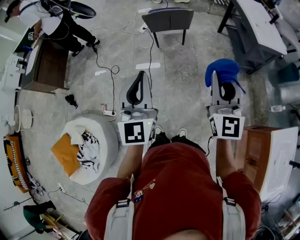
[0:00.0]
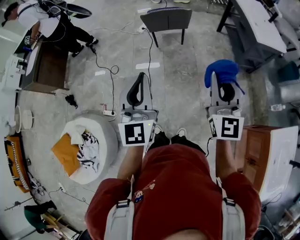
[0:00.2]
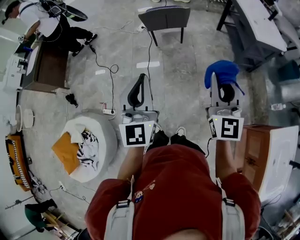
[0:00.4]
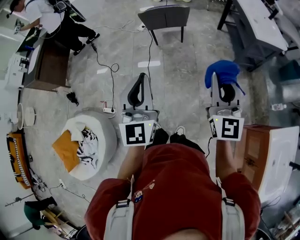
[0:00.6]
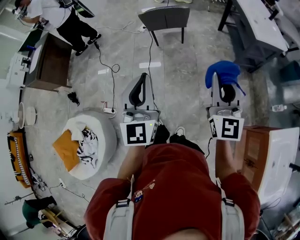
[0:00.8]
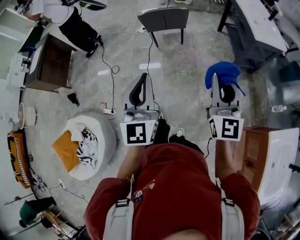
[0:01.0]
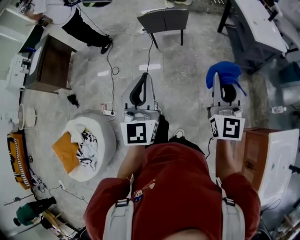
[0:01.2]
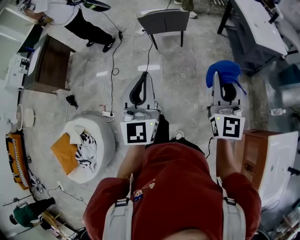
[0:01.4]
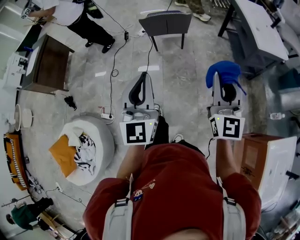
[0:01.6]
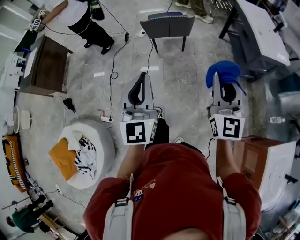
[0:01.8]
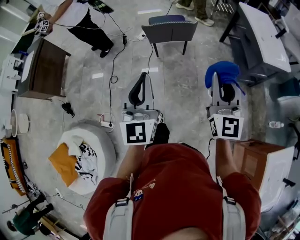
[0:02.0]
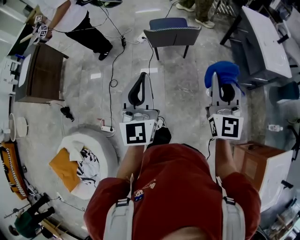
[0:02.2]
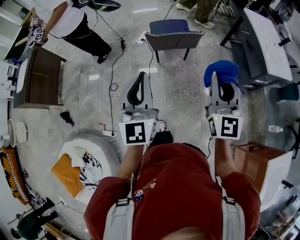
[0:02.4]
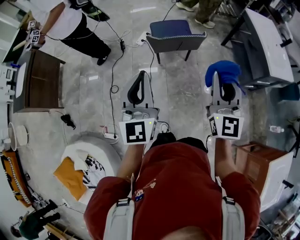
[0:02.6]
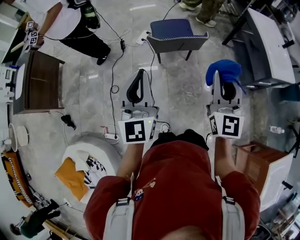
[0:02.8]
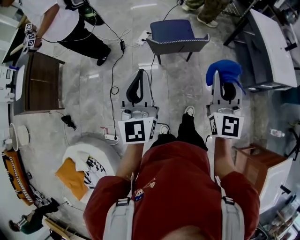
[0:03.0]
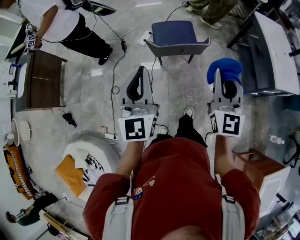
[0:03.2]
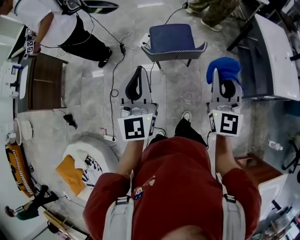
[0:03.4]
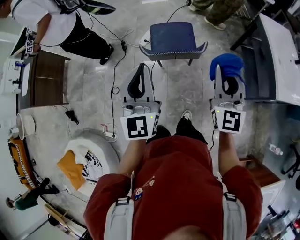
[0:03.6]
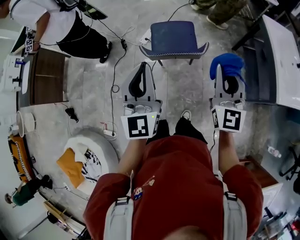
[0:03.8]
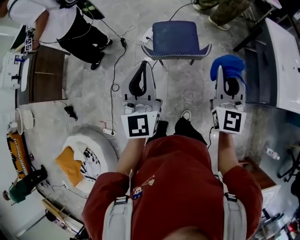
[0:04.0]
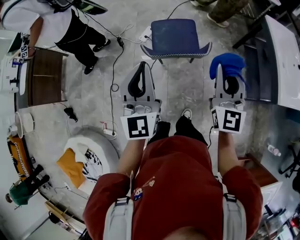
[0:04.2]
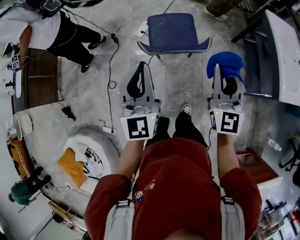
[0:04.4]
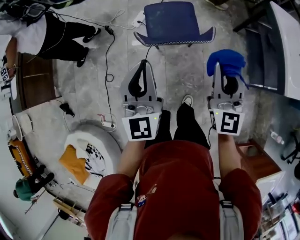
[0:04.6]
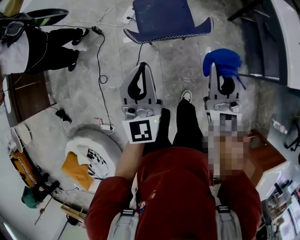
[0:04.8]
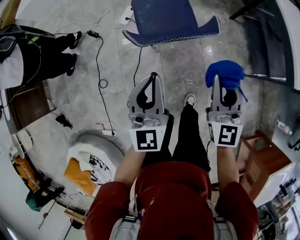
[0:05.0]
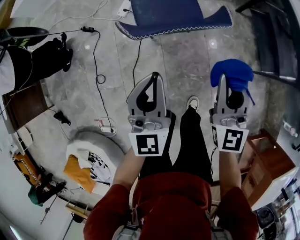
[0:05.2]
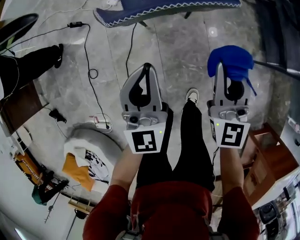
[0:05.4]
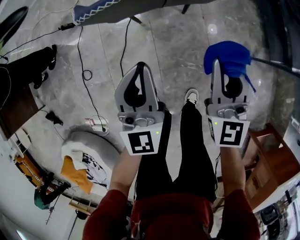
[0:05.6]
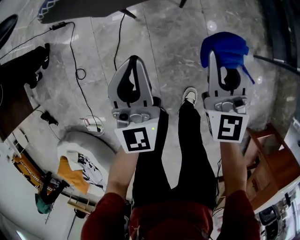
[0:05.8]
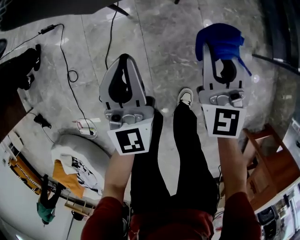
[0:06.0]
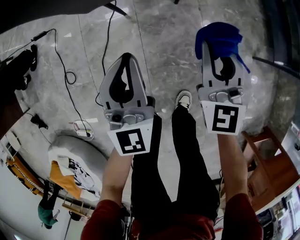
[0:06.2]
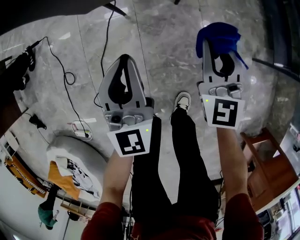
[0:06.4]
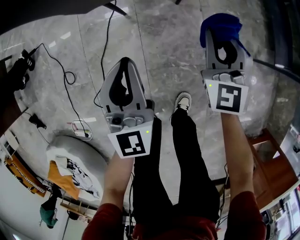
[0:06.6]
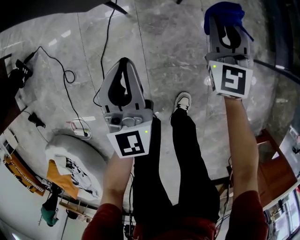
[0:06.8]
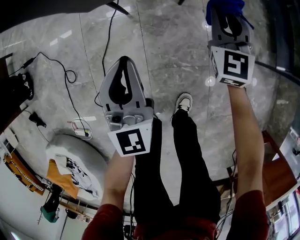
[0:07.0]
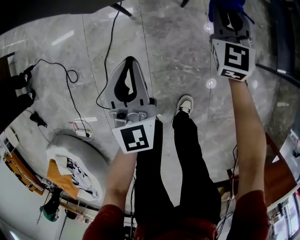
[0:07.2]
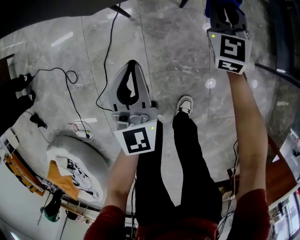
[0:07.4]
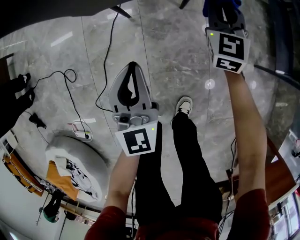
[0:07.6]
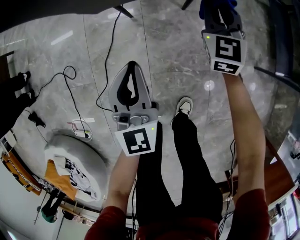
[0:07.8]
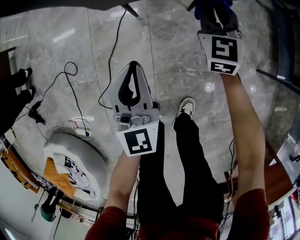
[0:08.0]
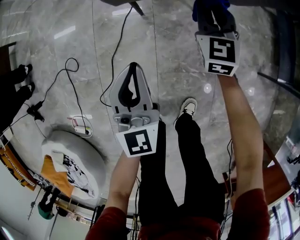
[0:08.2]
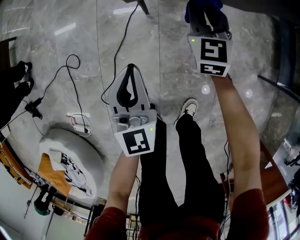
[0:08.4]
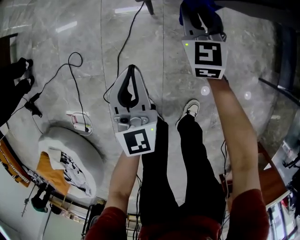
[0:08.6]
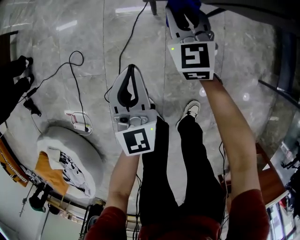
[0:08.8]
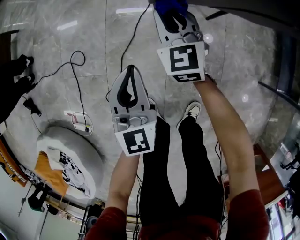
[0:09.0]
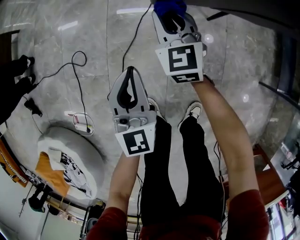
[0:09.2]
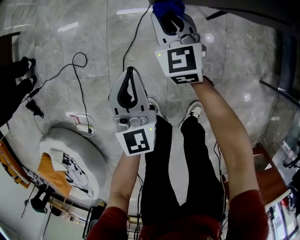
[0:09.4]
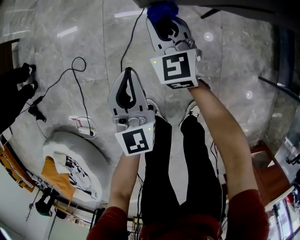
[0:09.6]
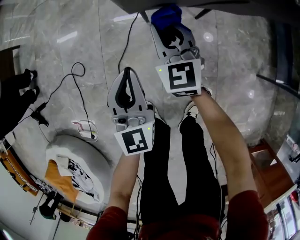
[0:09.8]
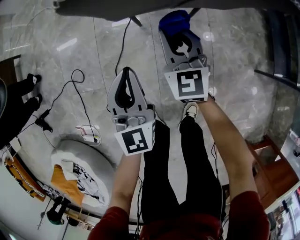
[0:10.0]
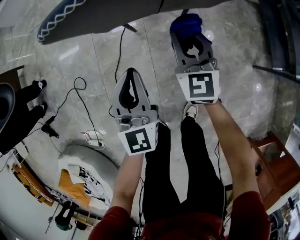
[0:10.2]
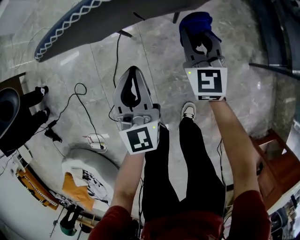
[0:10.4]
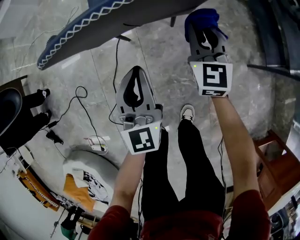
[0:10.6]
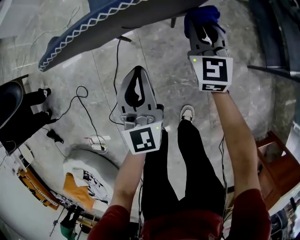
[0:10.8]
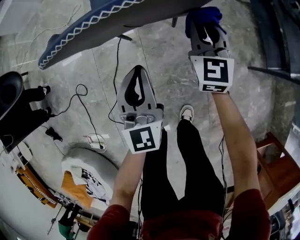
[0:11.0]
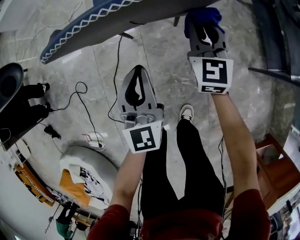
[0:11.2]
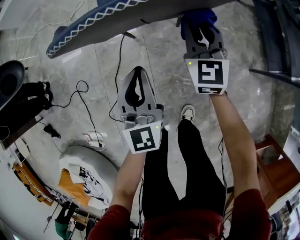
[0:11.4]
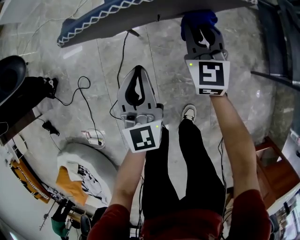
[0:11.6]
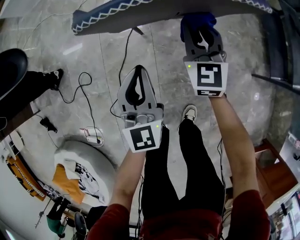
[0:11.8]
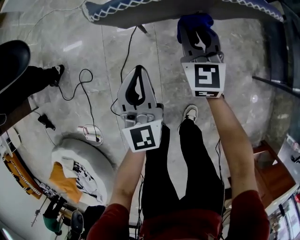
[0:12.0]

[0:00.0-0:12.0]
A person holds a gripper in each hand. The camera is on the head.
0:00.0 to 0:01.6: The grippers both shift to the right by some 5 cm.
0:01.6 to 0:03.0: Both grippers travel together forward and to the left, approximately 35 cm.
0:03.0 to 0:04.4: The two grippers go roughly 20 cm forward and to the right.
0:04.4 to 0:06.0: Both grippers move downward, some 50 cm.
0:06.0 to 0:07.6: The right gripper shifts approximately 20 cm forward and downward. Meanwhile the left gripper travels downward by roughly 5 cm.
0:07.6 to 0:09.0: The right gripper is displaced to the left by some 30 cm, and rotates approximately 20 degrees. Meanwhile the left gripper is displaced to the left by some 15 cm.
0:09.0 to 0:10.4: The grippers both shift to the right by some 25 cm. The right gripper swivels roughly 20 degrees.
0:10.4 to 0:12.0: The grippers both shift to the left by roughly 10 cm.

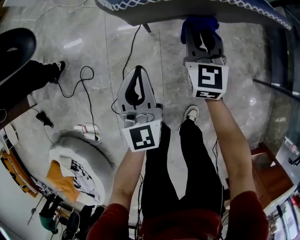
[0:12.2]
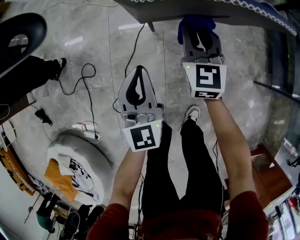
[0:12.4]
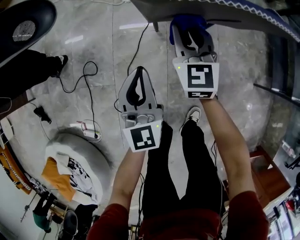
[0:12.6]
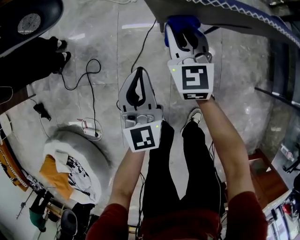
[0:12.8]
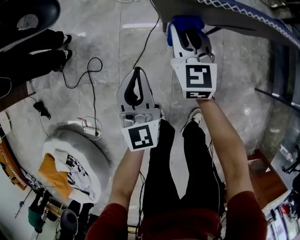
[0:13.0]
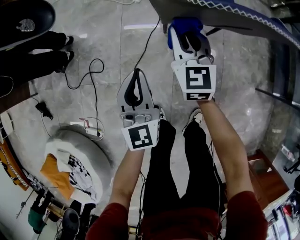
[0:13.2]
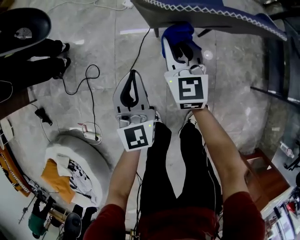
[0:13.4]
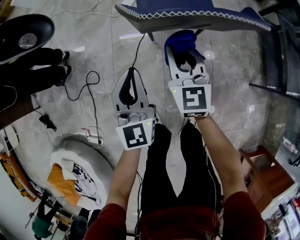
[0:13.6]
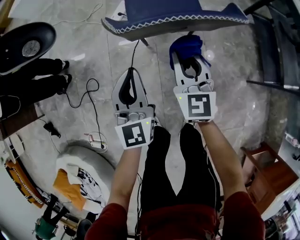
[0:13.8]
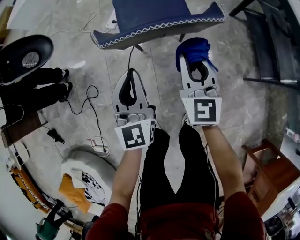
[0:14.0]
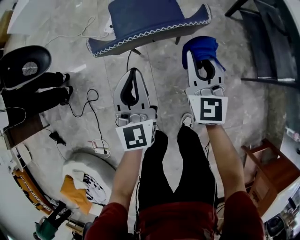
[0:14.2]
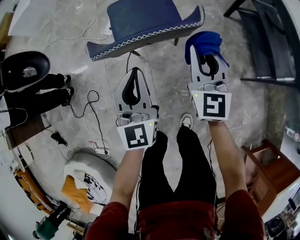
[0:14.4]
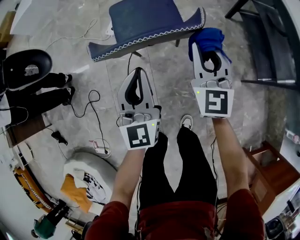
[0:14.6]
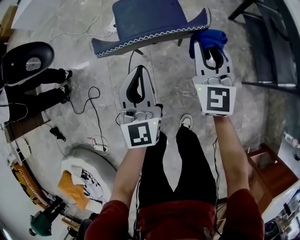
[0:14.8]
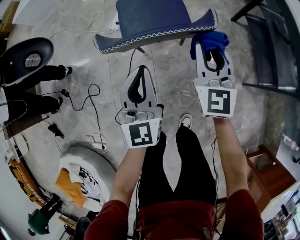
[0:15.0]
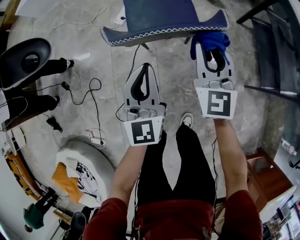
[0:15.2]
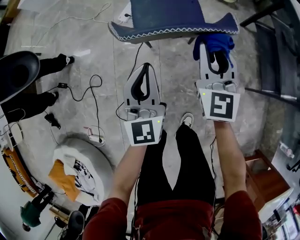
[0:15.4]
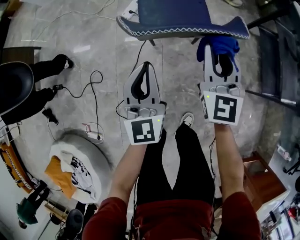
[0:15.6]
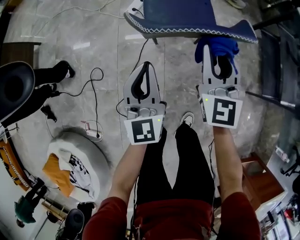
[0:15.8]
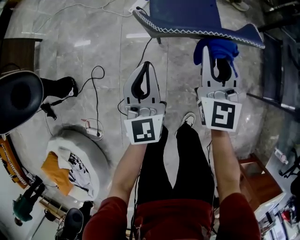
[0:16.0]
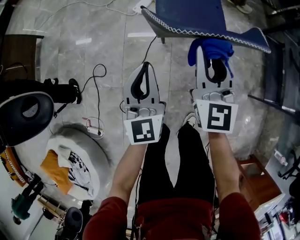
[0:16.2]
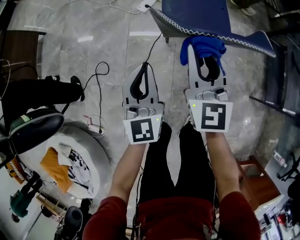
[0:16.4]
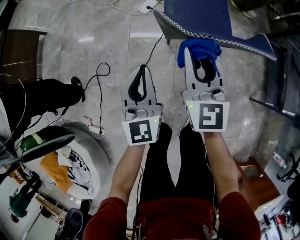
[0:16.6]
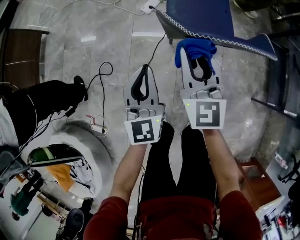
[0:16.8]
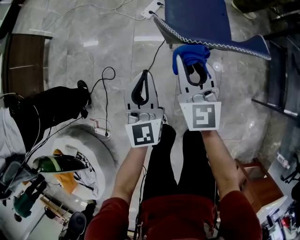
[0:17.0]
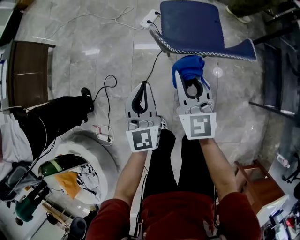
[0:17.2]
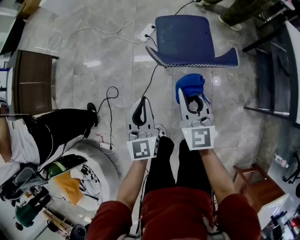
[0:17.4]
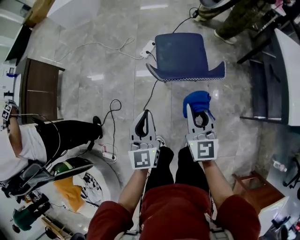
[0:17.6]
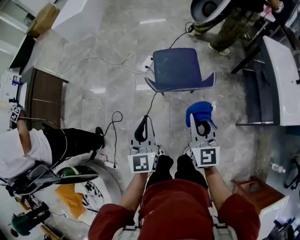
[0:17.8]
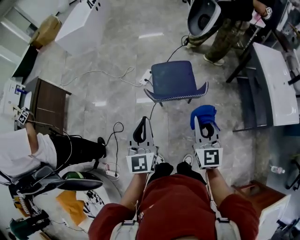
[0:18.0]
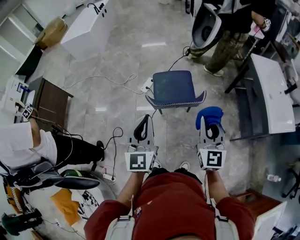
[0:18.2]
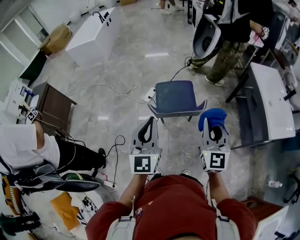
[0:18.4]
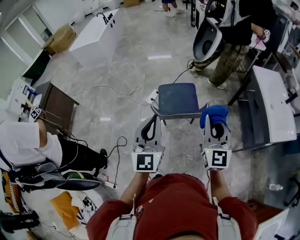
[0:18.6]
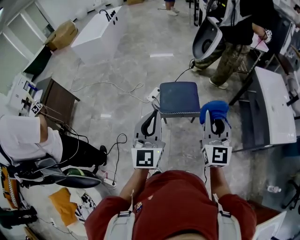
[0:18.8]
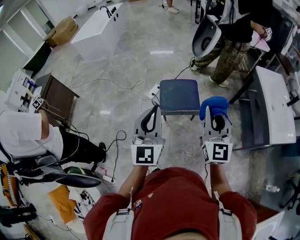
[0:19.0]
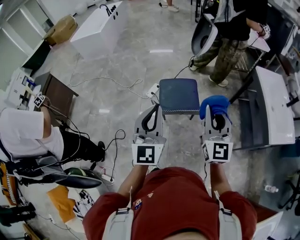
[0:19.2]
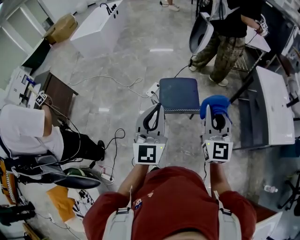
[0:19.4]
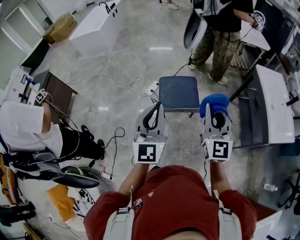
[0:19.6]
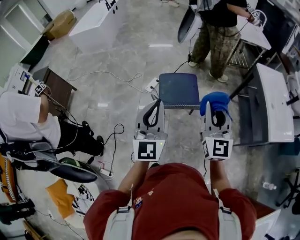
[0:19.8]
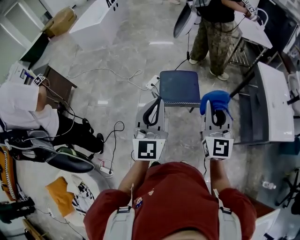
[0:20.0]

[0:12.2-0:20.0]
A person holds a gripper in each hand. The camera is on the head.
0:12.2 to 0:13.8: The left gripper moves upward, some 5 cm, and goes to the left and returns, roughly 10 cm each way. Meanwhile the right gripper moves upward and backward, approximately 10 cm, and travels to the left and back again, approximately 15 cm each way.
0:13.8 to 0:15.4: The right gripper travels upward and to the right by approximately 10 cm. The left gripper shifts approximately 5 cm to the right.
0:15.4 to 0:16.8: The two grippers go roughly 20 cm to the left.
0:16.8 to 0:18.4: The left gripper goes roughly 35 cm upward. Meanwhile the right gripper heads upward, to the right and backward, covering approximately 40 cm.
0:18.4 to 0:20.0: The right gripper changes place by approximately 5 cm.

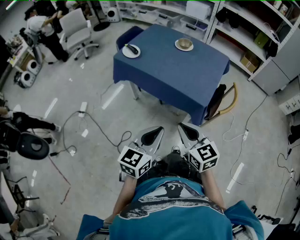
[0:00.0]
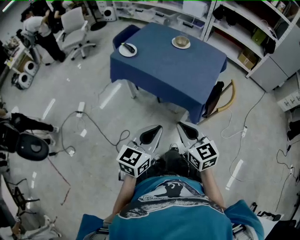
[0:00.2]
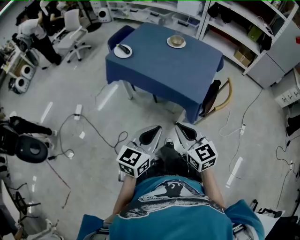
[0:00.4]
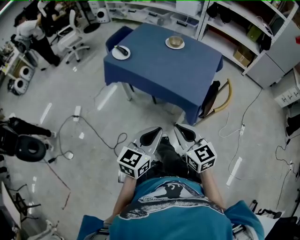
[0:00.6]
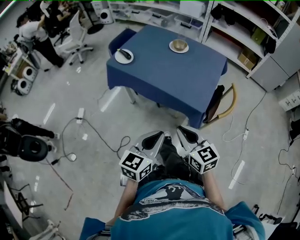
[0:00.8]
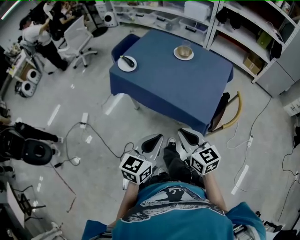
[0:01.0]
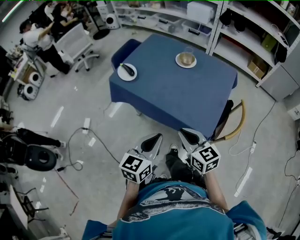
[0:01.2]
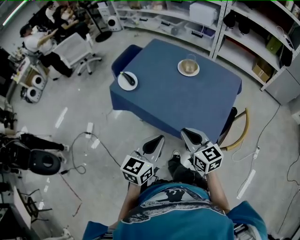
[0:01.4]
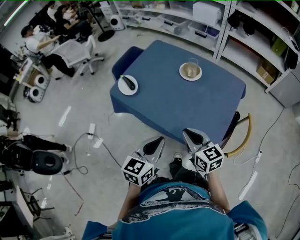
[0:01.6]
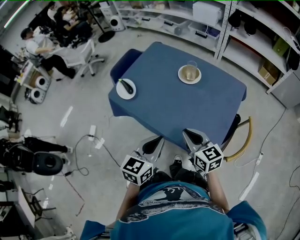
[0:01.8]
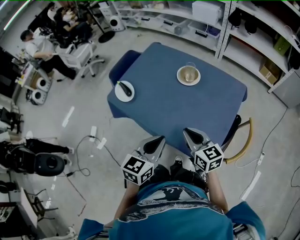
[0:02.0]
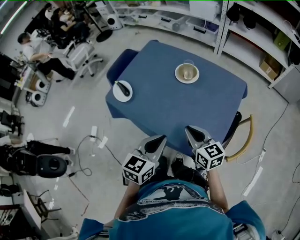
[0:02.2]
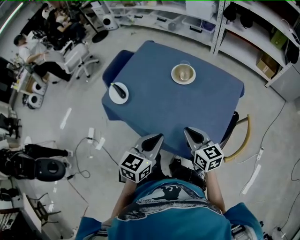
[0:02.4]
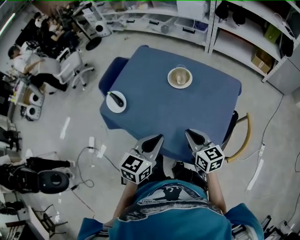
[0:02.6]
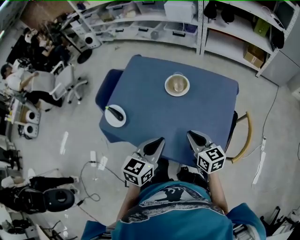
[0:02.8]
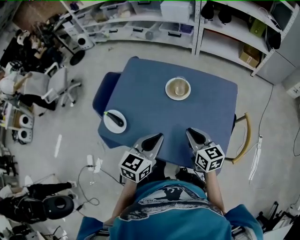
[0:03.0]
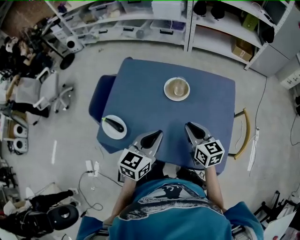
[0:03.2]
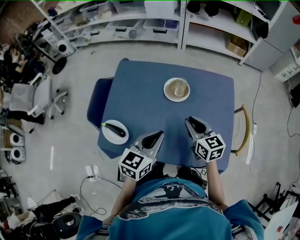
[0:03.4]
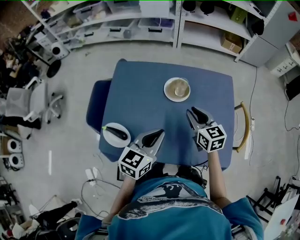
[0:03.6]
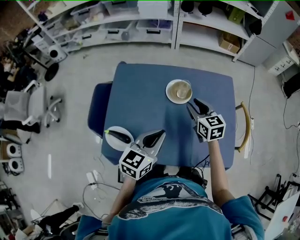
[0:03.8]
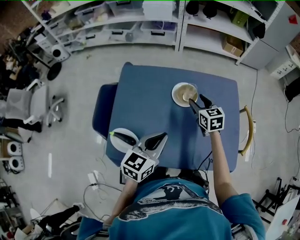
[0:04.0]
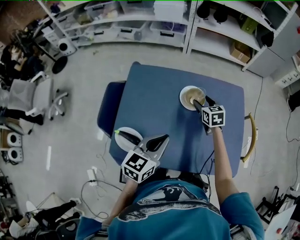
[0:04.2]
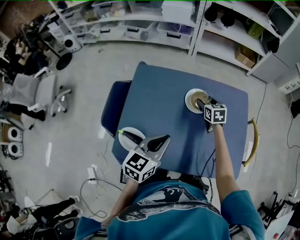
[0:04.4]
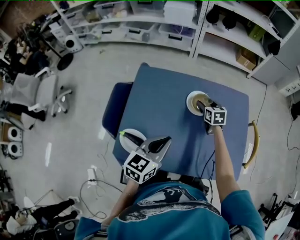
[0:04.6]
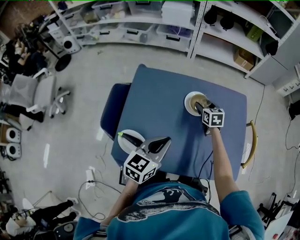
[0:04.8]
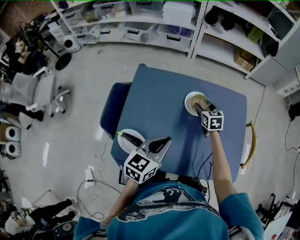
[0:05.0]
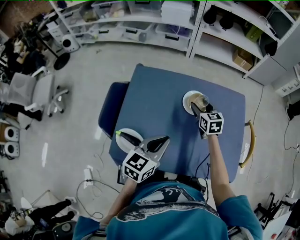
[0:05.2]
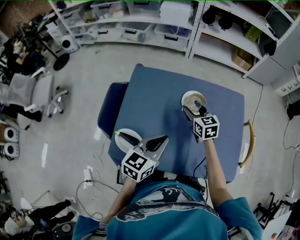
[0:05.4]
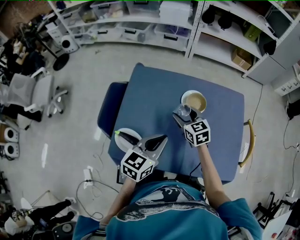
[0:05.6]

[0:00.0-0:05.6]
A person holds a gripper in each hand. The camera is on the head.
0:00.0 to 0:01.4: The grippers both shift forward by approximately 25 cm.
0:01.4 to 0:02.8: Both grippers move forward, approximately 15 cm.
0:02.8 to 0:04.2: The left gripper goes approximately 15 cm to the left and forward, while the right gripper travels forward by roughly 25 cm, rotates about 30 degrees, and opens.
0:04.2 to 0:05.6: The right gripper is displaced to the left and backward by roughly 15 cm.
